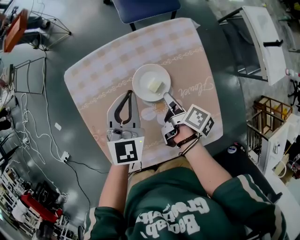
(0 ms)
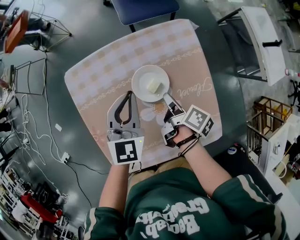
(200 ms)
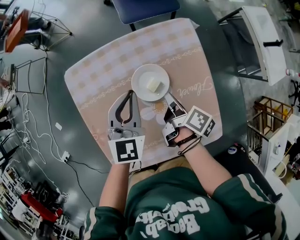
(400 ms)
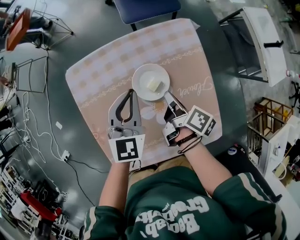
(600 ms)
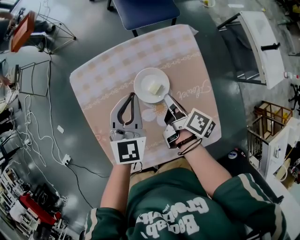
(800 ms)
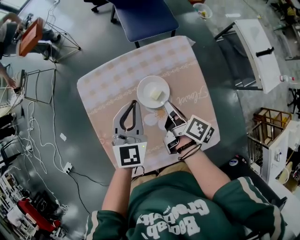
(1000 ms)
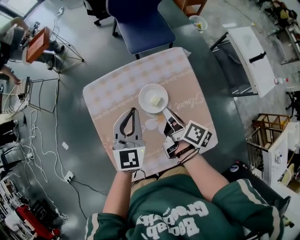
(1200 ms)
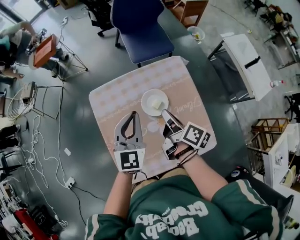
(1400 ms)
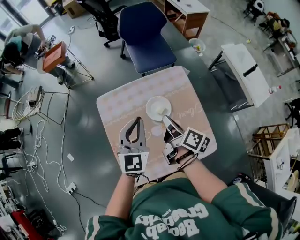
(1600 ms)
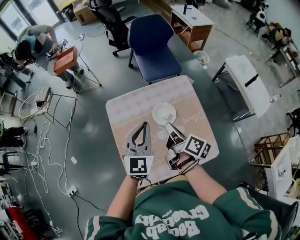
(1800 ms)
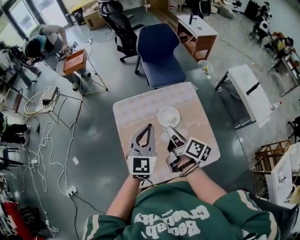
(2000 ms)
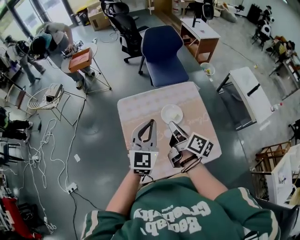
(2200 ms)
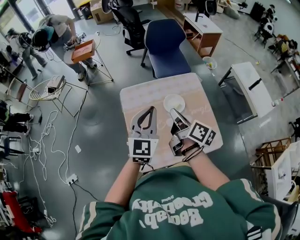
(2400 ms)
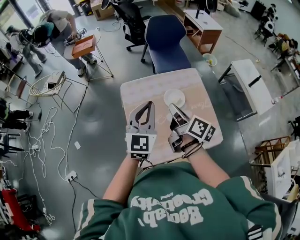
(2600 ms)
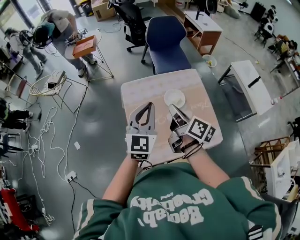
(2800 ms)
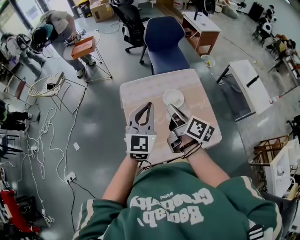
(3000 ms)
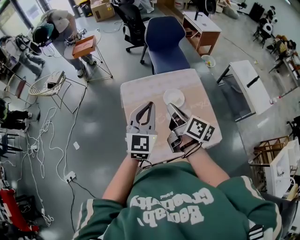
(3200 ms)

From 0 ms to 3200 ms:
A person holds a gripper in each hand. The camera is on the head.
From 0 ms to 1600 ms: The left gripper moves upward, some 15 cm.
From 1600 ms to 3200 ms: The left gripper shifts by approximately 15 cm.

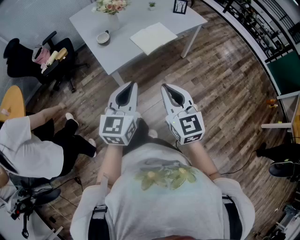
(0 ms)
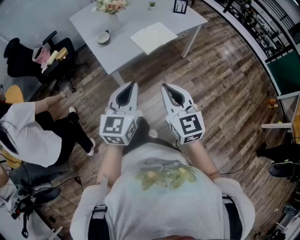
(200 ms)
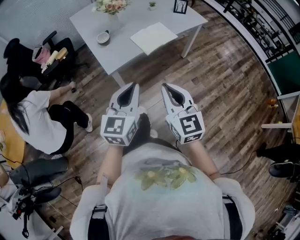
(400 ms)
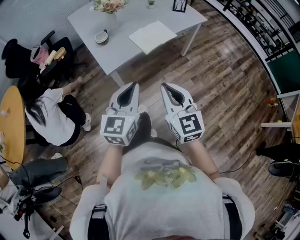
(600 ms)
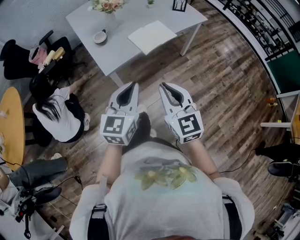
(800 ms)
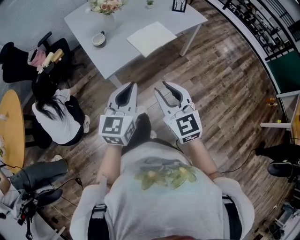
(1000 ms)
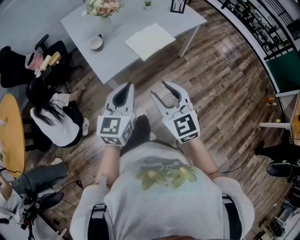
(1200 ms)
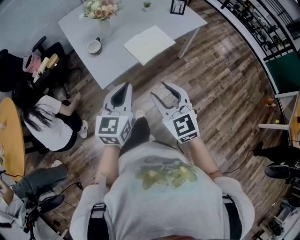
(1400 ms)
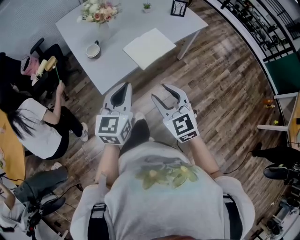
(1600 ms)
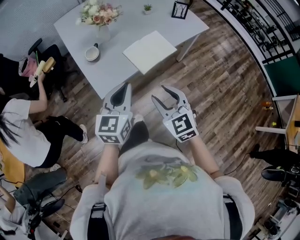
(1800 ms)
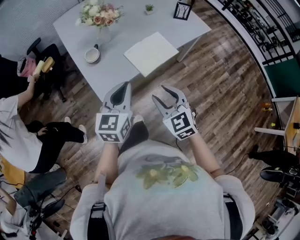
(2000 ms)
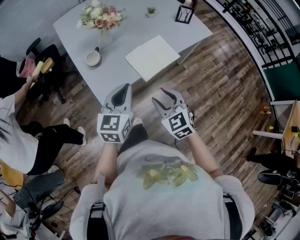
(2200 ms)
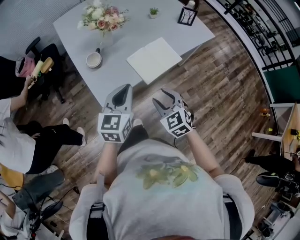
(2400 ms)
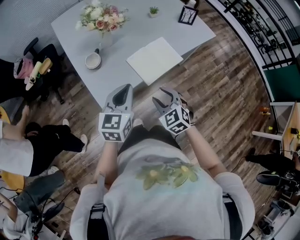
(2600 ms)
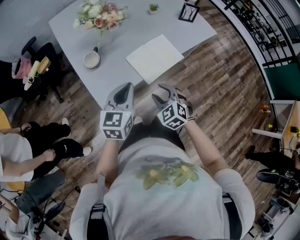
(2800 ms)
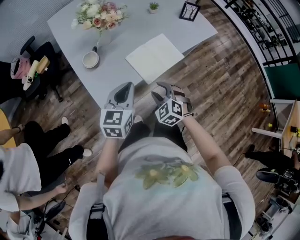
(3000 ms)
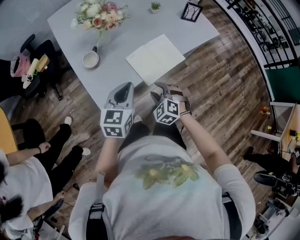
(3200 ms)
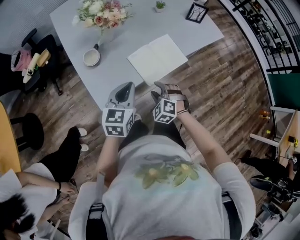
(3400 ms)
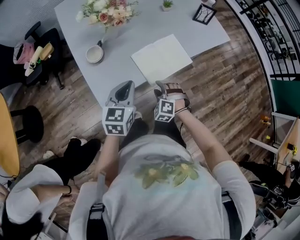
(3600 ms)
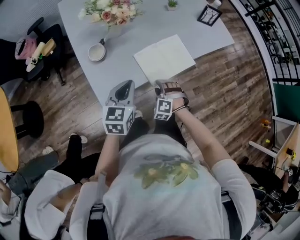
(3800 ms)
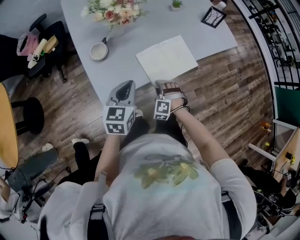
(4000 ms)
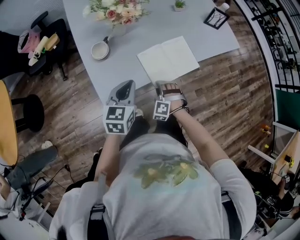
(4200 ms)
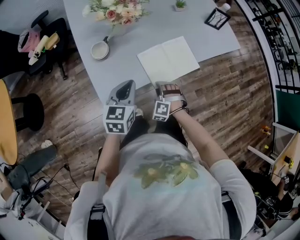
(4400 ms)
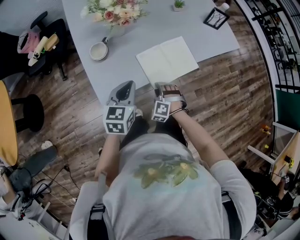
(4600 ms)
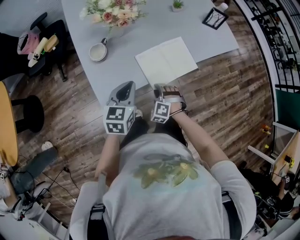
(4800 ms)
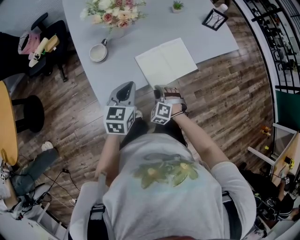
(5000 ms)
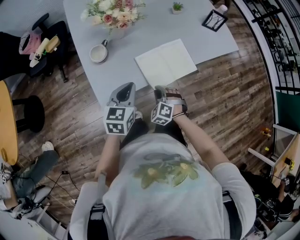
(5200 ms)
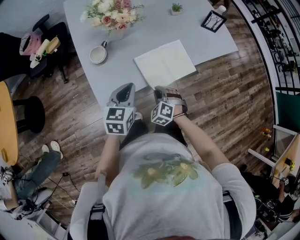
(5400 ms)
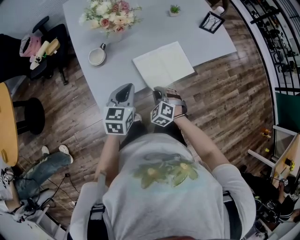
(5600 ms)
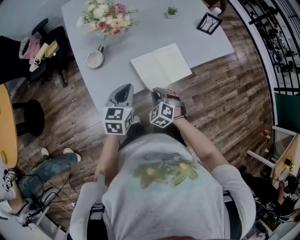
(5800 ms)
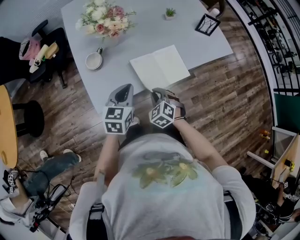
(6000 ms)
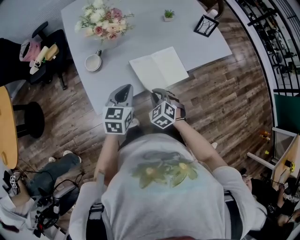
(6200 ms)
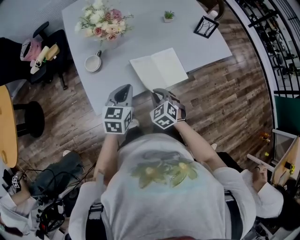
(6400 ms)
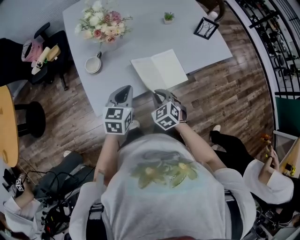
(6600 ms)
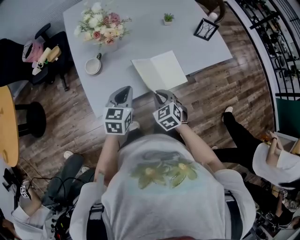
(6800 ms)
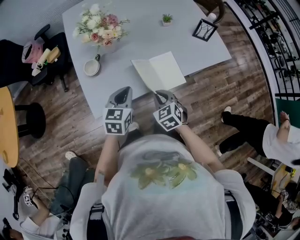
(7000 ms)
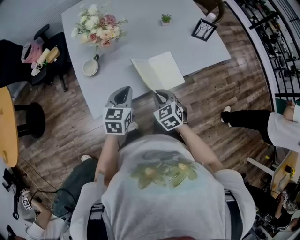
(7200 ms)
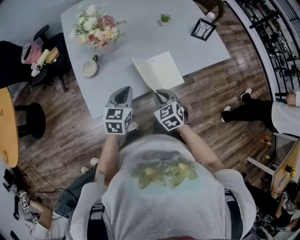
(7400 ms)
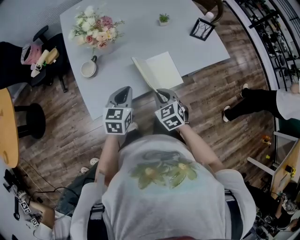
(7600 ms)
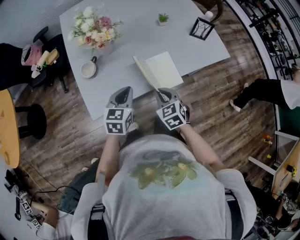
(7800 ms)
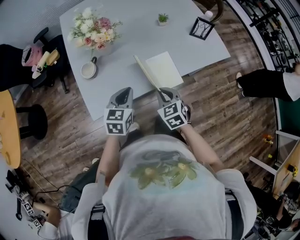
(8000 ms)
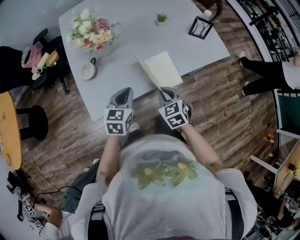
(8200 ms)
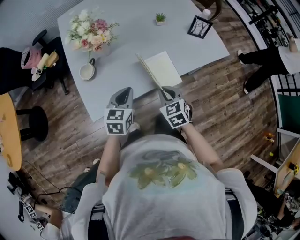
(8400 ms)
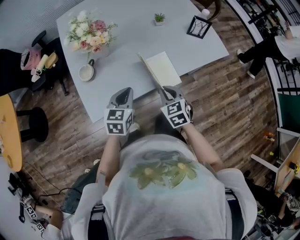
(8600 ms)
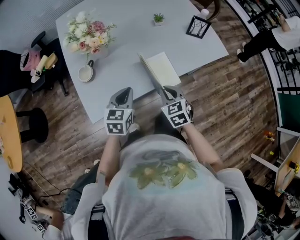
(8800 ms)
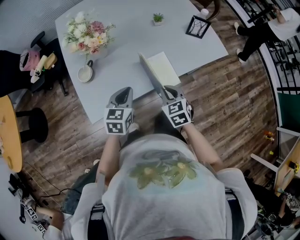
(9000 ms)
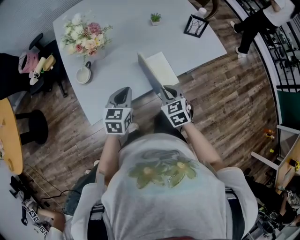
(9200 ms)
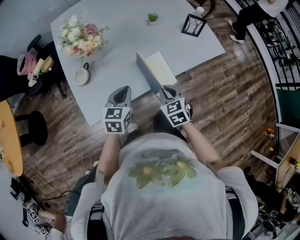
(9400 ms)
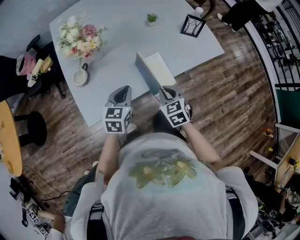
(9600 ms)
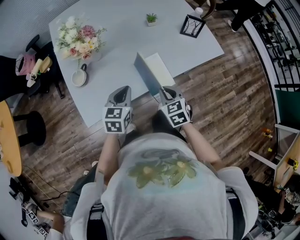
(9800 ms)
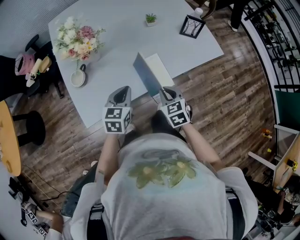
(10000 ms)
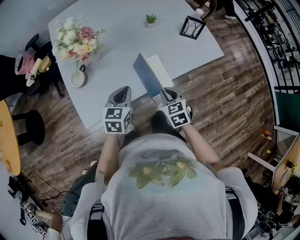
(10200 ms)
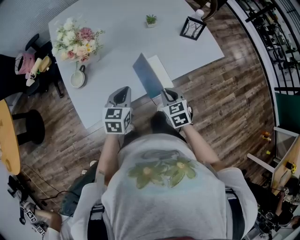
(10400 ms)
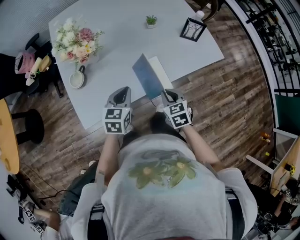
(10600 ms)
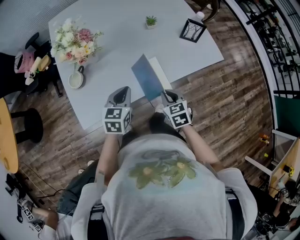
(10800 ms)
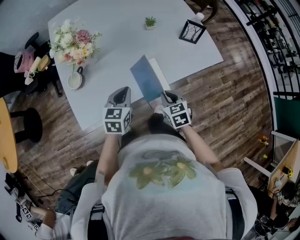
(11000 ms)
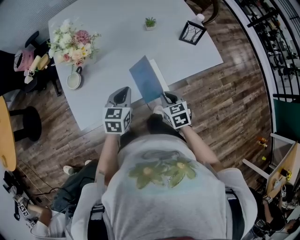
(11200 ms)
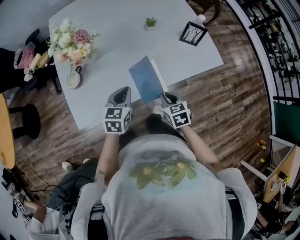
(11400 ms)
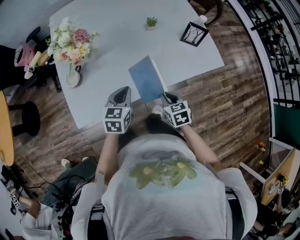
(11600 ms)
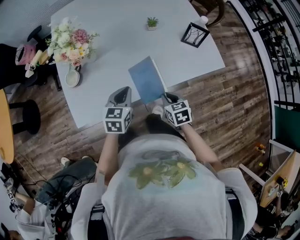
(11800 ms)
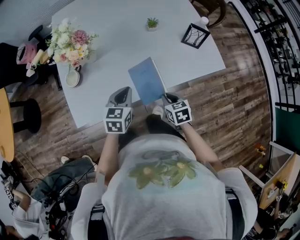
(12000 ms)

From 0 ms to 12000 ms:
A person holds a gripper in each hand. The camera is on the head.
From 0 ms to 1600 ms: The two grippers go some 15 cm forward. The right gripper opens up.
From 1600 ms to 3000 ms: The left gripper is displaced forward and downward by roughly 15 cm; the right gripper shifts about 25 cm downward and forward, and swivels about 30 degrees.
From 3000 ms to 4400 ms: The right gripper heads downward and forward, covering roughly 15 cm, and changes its angle by some 40 degrees, while the left gripper is displaced downward by about 5 cm.
From 4400 ms to 6000 ms: The right gripper moves upward, some 10 cm, rotates roughly 40 degrees, and closes.
From 6000 ms to 7600 ms: The right gripper heads to the right and upward, covering some 10 cm, and changes its angle by approximately 20 degrees.
From 7600 ms to 9000 ms: The right gripper moves roughly 5 cm.
From 9000 ms to 10400 ms: There are only small adjustments of the grippers.
From 10400 ms to 12000 ms: The right gripper shifts about 10 cm to the right and downward. Meanwhile the left gripper moves some 5 cm.

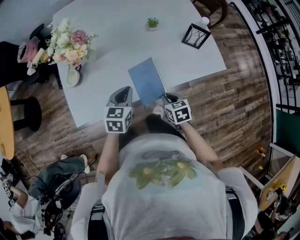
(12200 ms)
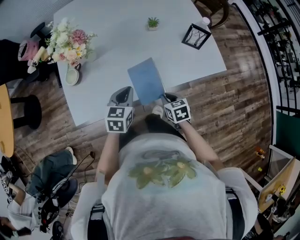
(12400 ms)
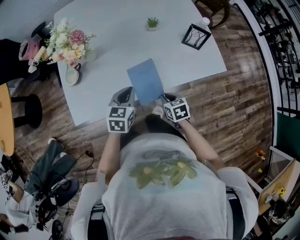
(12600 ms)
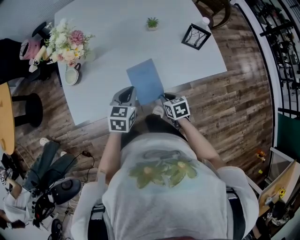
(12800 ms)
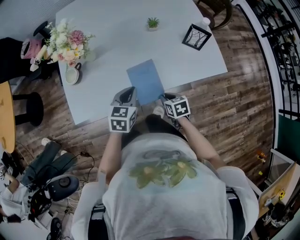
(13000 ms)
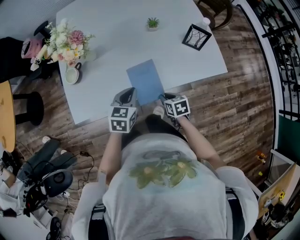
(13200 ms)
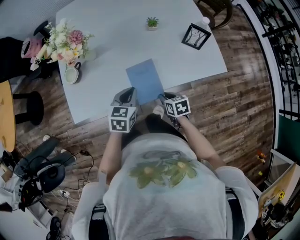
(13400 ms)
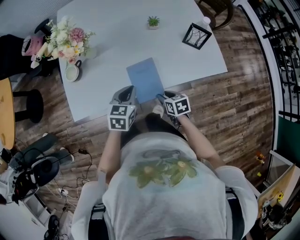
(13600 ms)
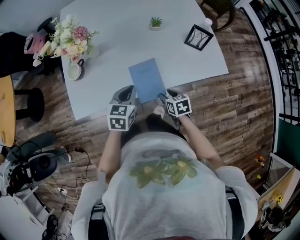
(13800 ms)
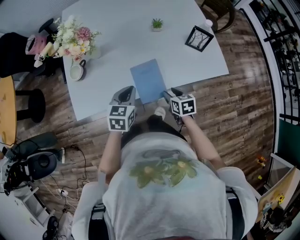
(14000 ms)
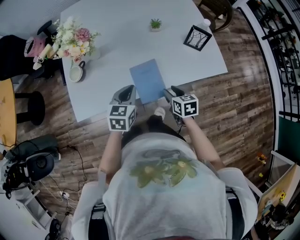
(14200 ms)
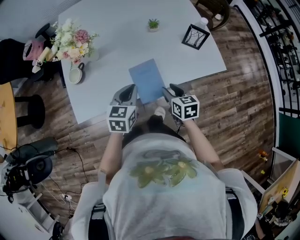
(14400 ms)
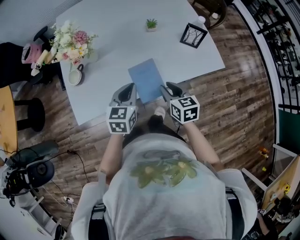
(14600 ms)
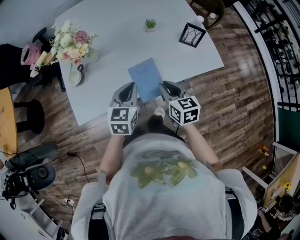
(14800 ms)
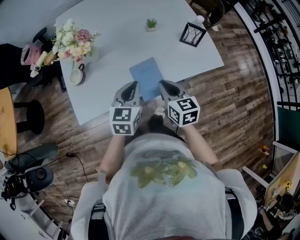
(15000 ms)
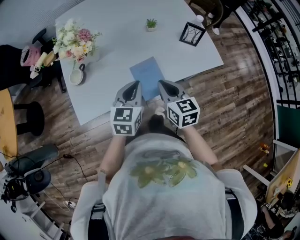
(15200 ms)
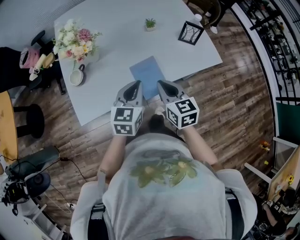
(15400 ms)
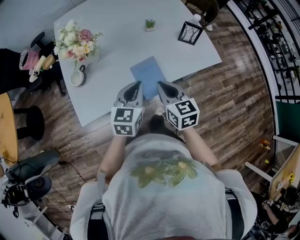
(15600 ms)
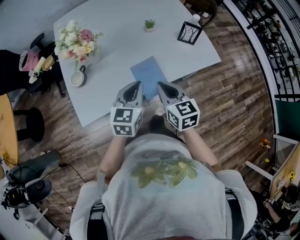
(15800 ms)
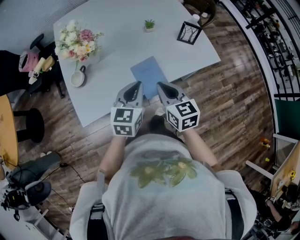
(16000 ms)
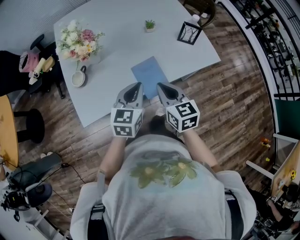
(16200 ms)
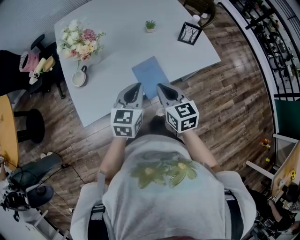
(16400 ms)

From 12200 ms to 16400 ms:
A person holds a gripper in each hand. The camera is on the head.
From 12200 ms to 13600 ms: The grippers stay close to where they were, moving slightly.
From 13600 ms to 15000 ms: The left gripper heads upward, covering approximately 10 cm; the right gripper moves upward, approximately 20 cm, turns by roughly 30 degrees, and closes its fingers.
From 15000 ms to 16400 ms: The right gripper moves some 5 cm.

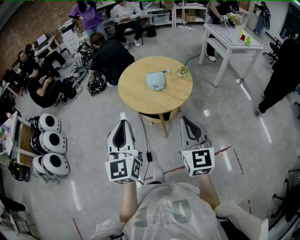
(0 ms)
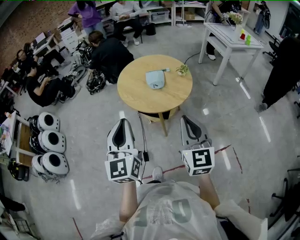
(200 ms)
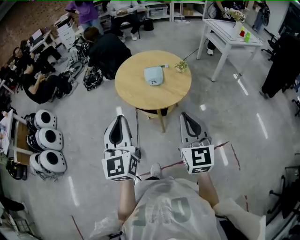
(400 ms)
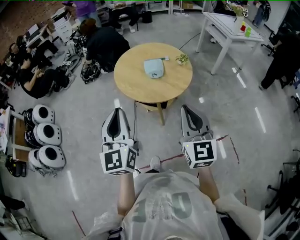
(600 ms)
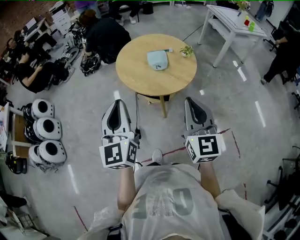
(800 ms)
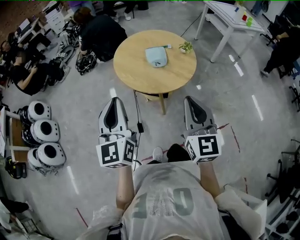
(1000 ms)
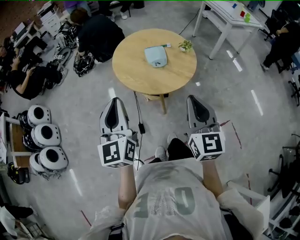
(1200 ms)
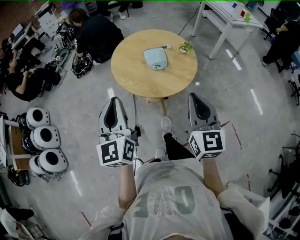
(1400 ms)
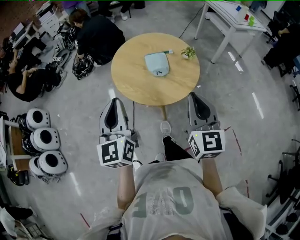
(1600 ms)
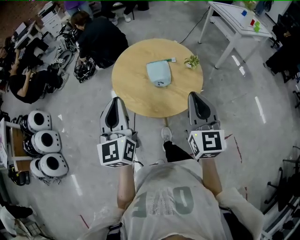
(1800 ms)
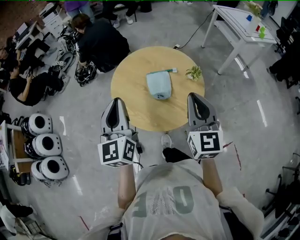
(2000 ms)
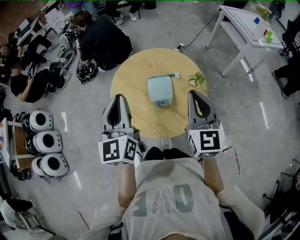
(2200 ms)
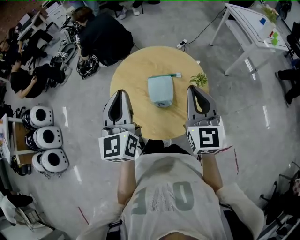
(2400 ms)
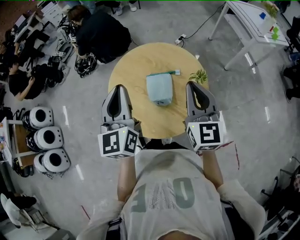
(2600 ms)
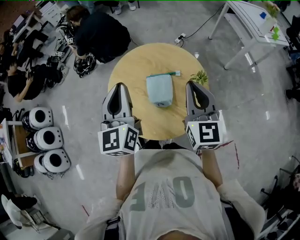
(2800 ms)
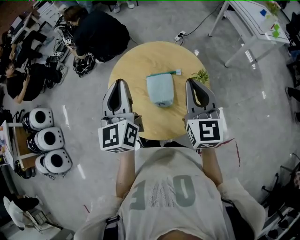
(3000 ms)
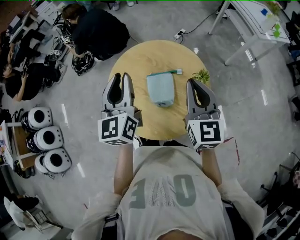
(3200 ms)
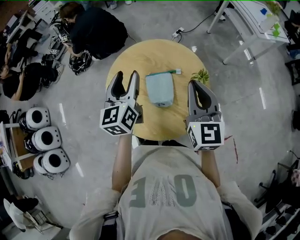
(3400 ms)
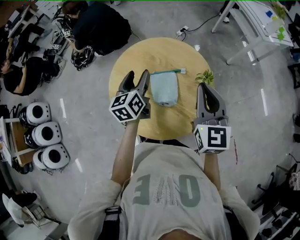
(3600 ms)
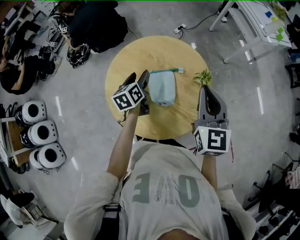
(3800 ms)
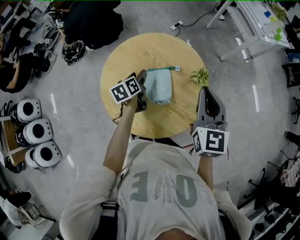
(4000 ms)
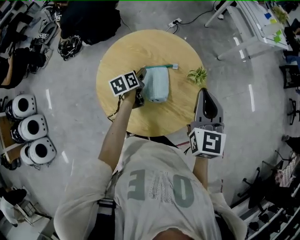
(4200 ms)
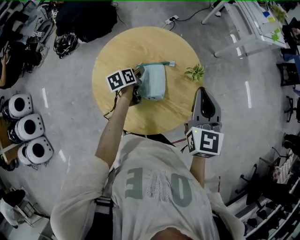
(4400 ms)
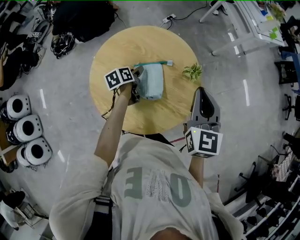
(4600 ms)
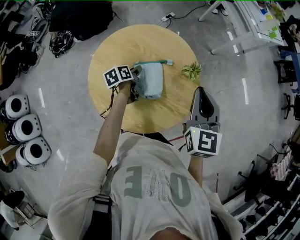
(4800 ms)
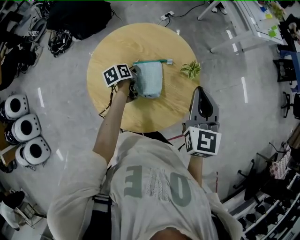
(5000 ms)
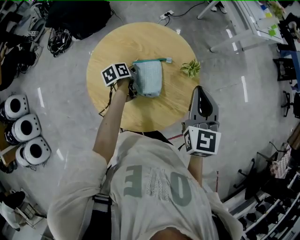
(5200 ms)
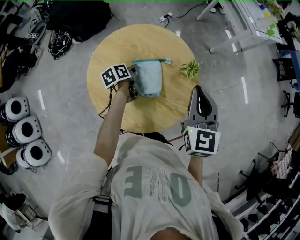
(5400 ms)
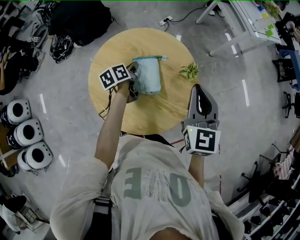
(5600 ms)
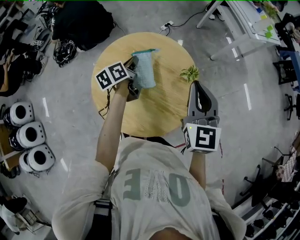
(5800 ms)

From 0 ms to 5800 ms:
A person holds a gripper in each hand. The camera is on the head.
From 0 ms to 1400 ms: The right gripper goes some 10 cm forward. The left gripper travels forward and to the left by some 15 cm.
From 1400 ms to 2800 ms: Both grippers move forward, approximately 35 cm.
From 2800 ms to 4400 ms: The right gripper changes place by roughly 5 cm. The left gripper heads downward and forward, covering some 35 cm, tips its fingers downward by about 40 degrees, and opens.
From 4400 ms to 5800 ms: The left gripper travels upward by roughly 10 cm, and closes.
